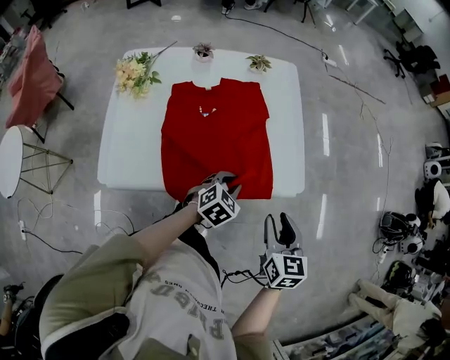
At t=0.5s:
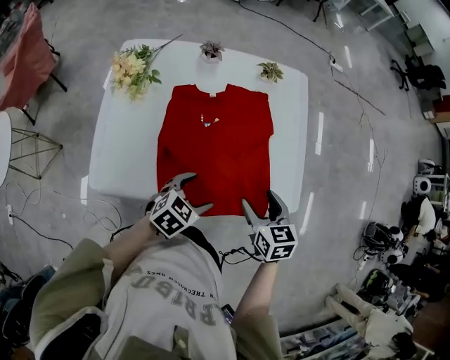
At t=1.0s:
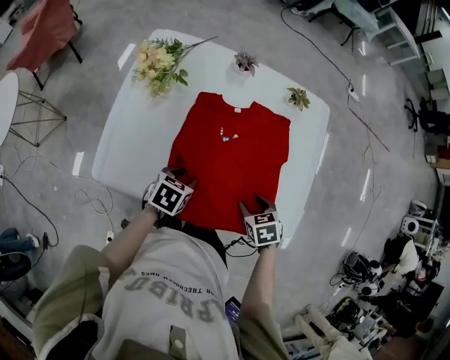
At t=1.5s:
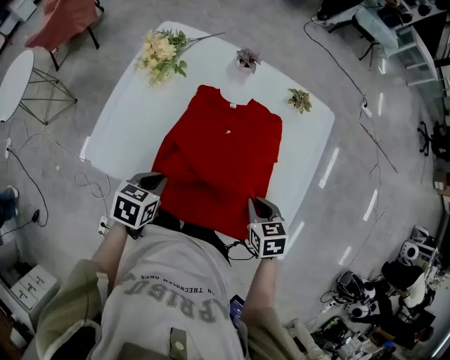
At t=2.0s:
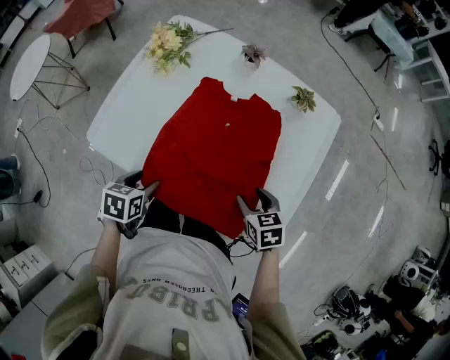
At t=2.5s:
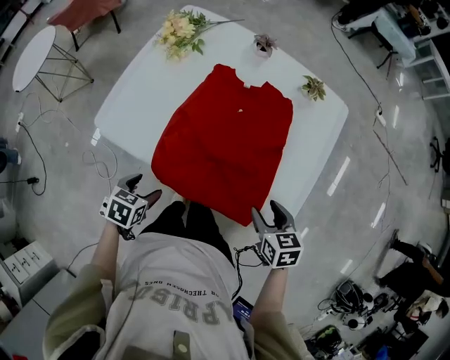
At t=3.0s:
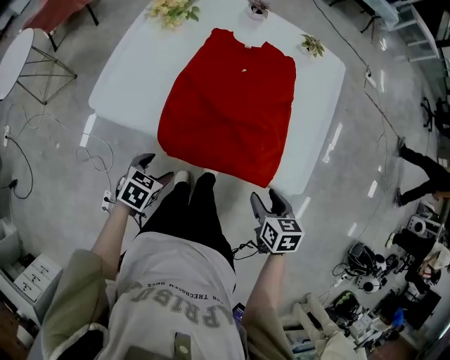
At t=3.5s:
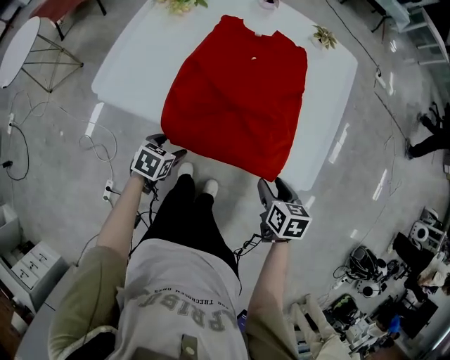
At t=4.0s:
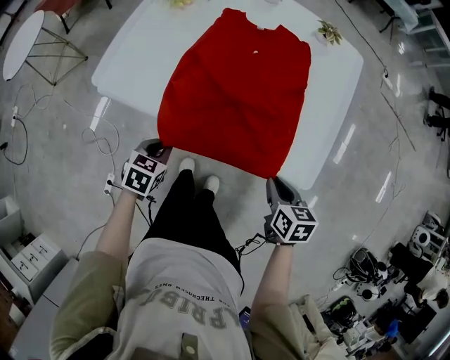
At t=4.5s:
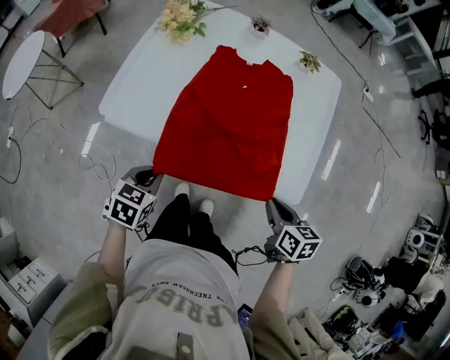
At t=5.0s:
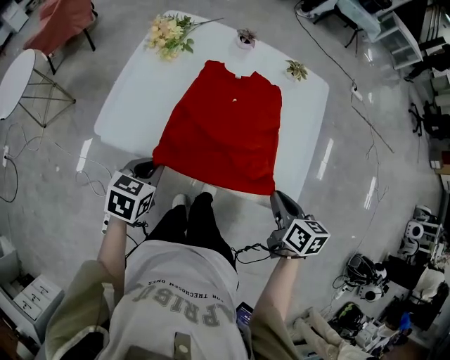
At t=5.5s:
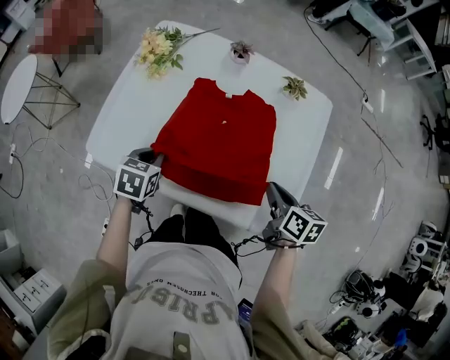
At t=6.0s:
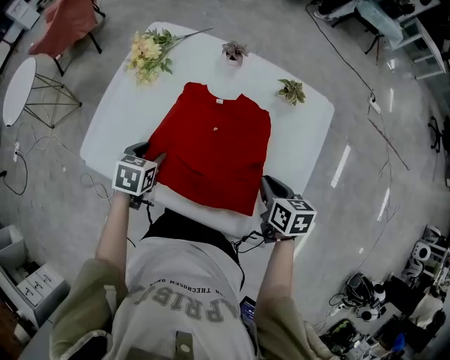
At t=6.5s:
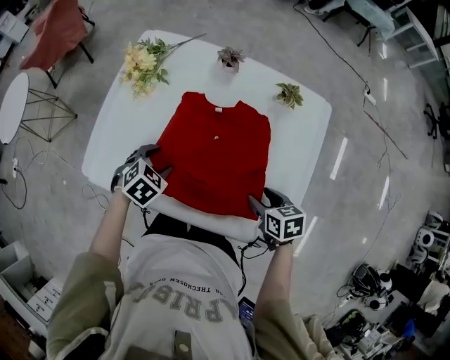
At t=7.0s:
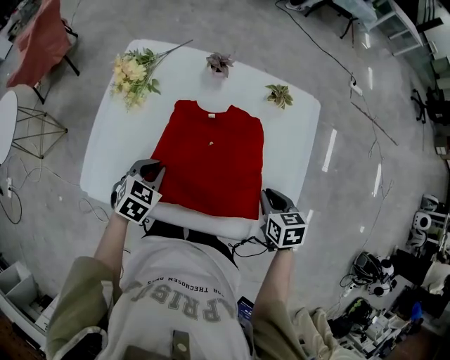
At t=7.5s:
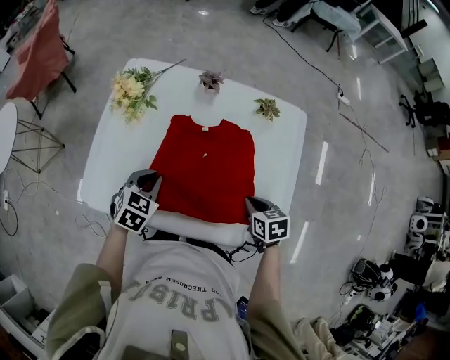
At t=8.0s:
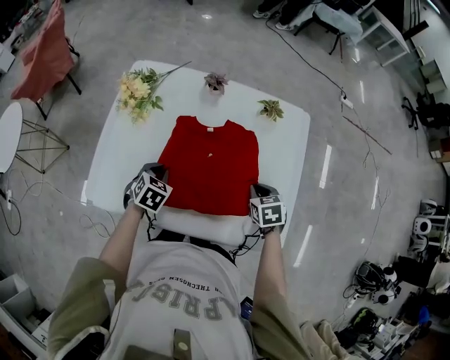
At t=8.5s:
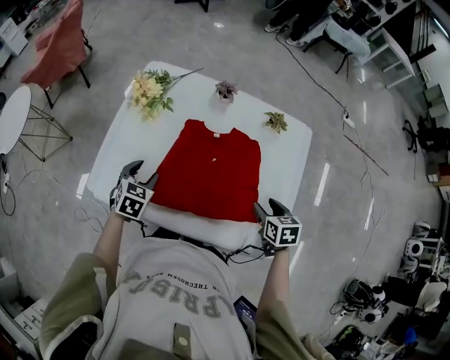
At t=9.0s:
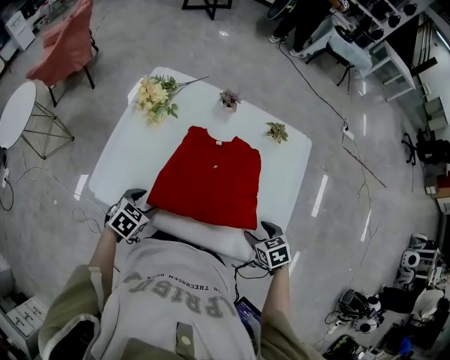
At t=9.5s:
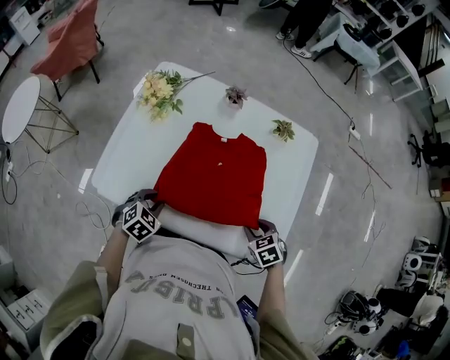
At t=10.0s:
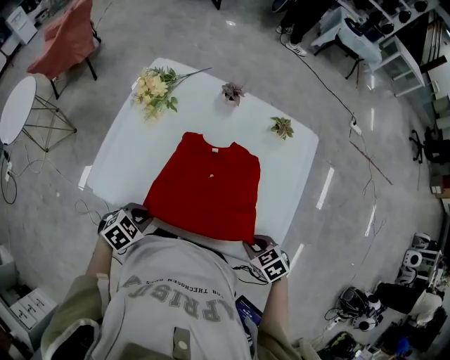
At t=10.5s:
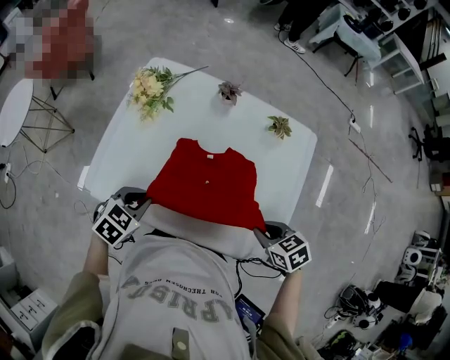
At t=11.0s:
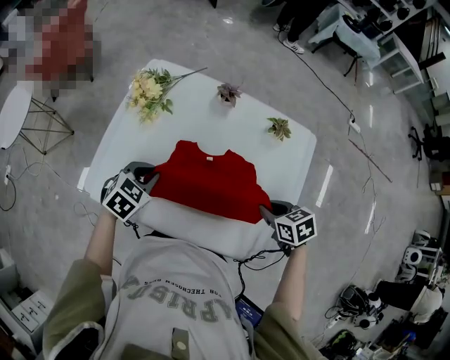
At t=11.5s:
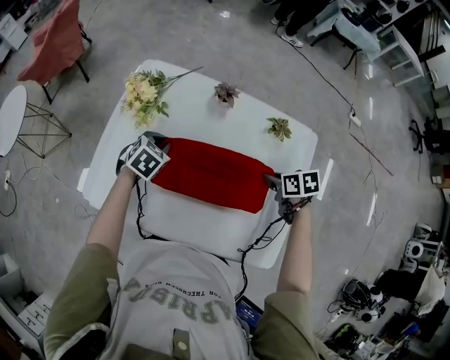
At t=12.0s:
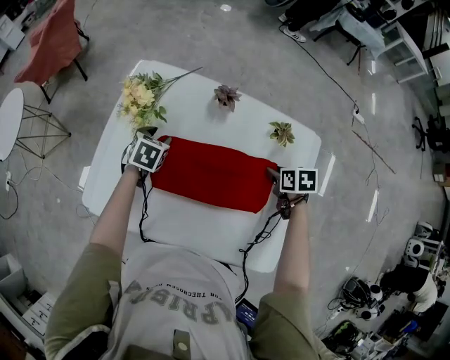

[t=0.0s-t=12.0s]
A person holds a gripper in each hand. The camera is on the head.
t=0.0s to t=2.0s: The right gripper moves some 25 cm, and swivels roughly 50 degrees. Meanwhile the left gripper moves about 20 cm, twists about 60 degrees counterclockwise, seen from behind, and opens up.
t=2.0s to t=4.0s: The left gripper heads backward and downward, covering some 15 cm, swivels approximately 20 degrees, and closes up, while the right gripper is displaced backward by approximately 15 cm, turns by about 20 degrees, and closes.
t=4.0s to t=6.0s: Both grippers move forward, some 25 cm. The left gripper opens up.
t=6.0s to t=8.0s: The right gripper moves some 5 cm, swivels approximately 20 degrees, and opens, then closes once more; the left gripper turns by about 30 degrees, and closes.
t=8.0s to t=10.0s: The right gripper moves approximately 15 cm, turns by about 30 degrees, and opens, then closes again. Meanwhile the left gripper moves roughly 15 cm, rotates some 20 degrees, and opens and closes again.
t=10.0s to t=12.0s: The left gripper moves approximately 5 cm upward and comes back, swivels some 30 degrees, and opens its fingers, while the right gripper ends up roughly 30 cm from where it was, and turns by approximately 40 degrees.

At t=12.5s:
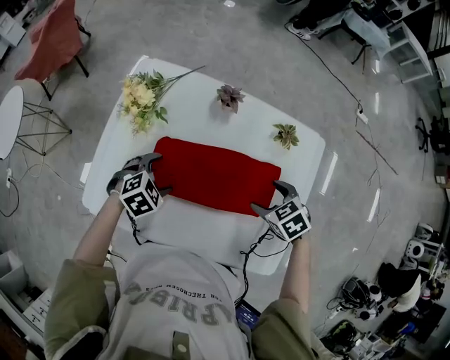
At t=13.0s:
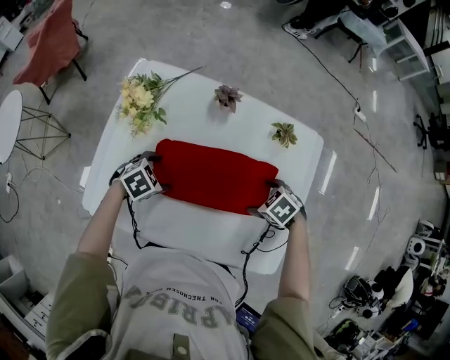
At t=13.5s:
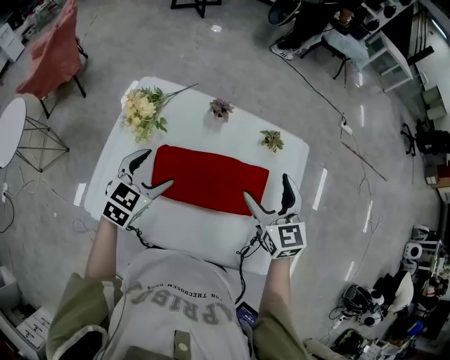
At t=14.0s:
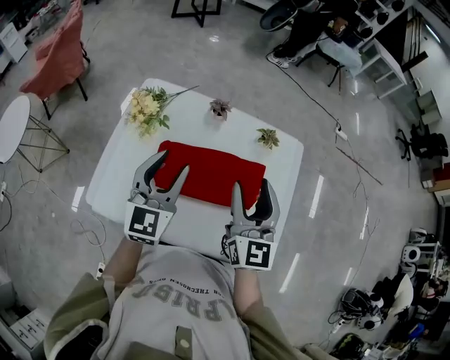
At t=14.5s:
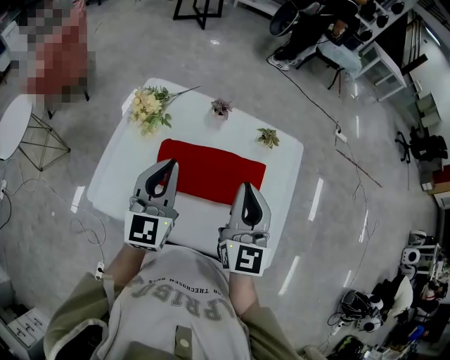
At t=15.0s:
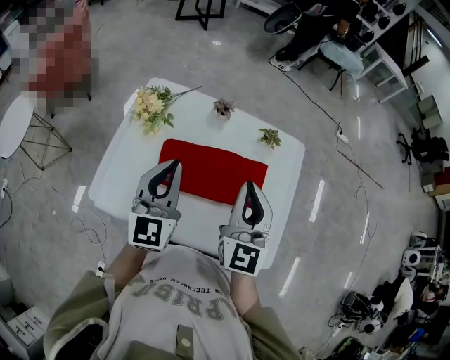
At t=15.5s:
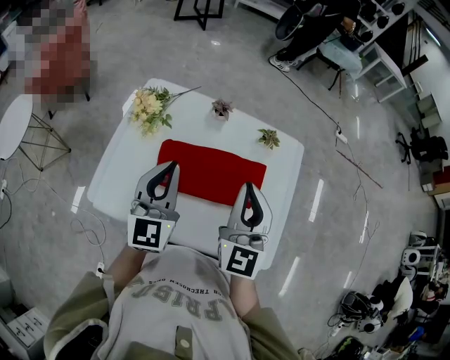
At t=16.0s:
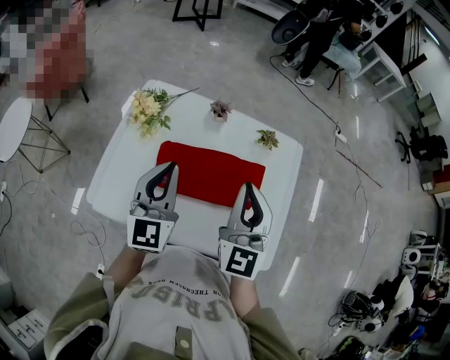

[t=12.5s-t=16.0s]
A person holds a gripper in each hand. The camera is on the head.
t=12.5s to t=14.5s: Both grippers travel together upward, approximately 25 cm. The right gripper tips its fingers upward by roughly 60 degrees, and closes up; the left gripper angles its fingers upward, by roughly 60 degrees, and closes.
t=14.5s to t=16.0s: The grippers move only a little.

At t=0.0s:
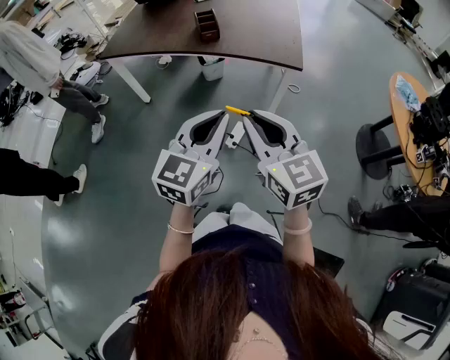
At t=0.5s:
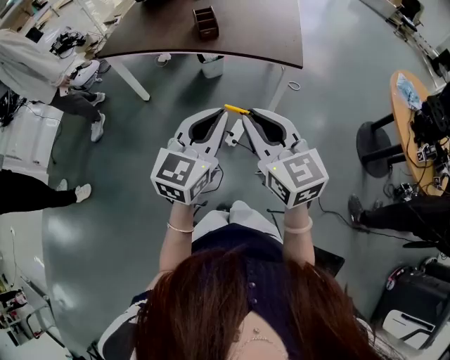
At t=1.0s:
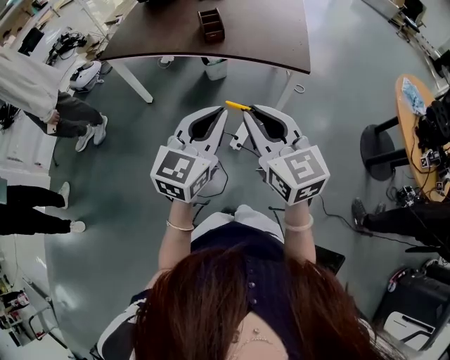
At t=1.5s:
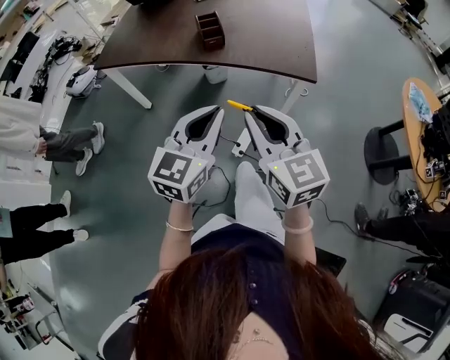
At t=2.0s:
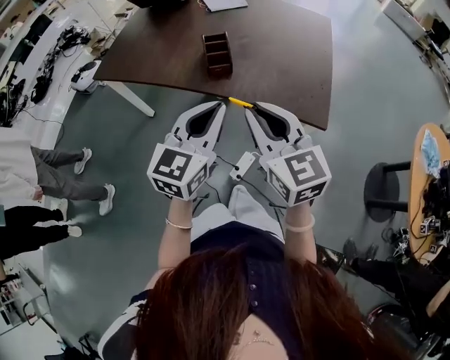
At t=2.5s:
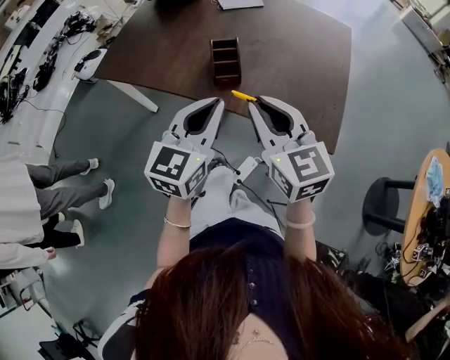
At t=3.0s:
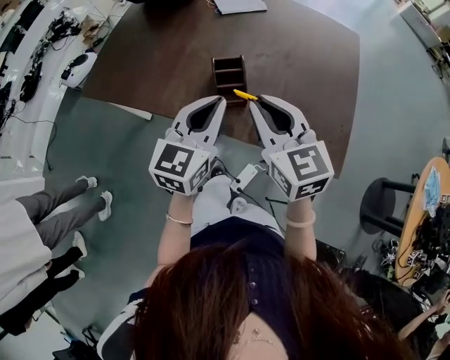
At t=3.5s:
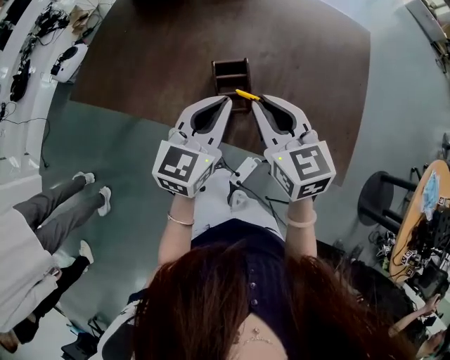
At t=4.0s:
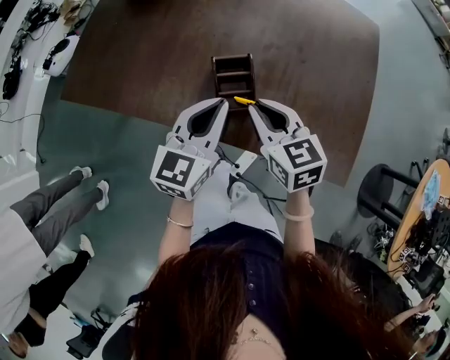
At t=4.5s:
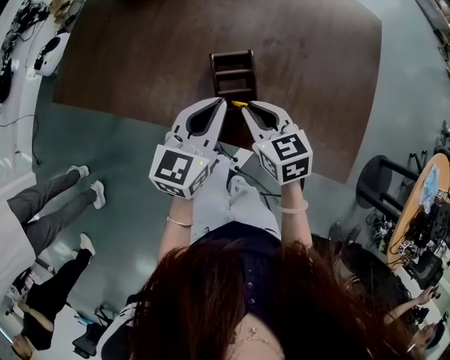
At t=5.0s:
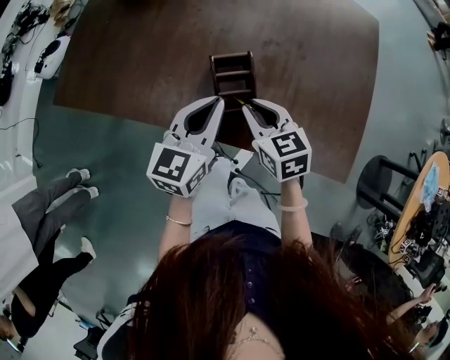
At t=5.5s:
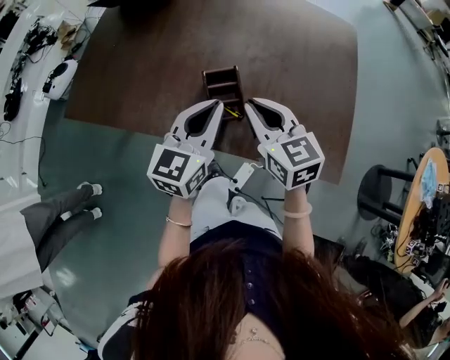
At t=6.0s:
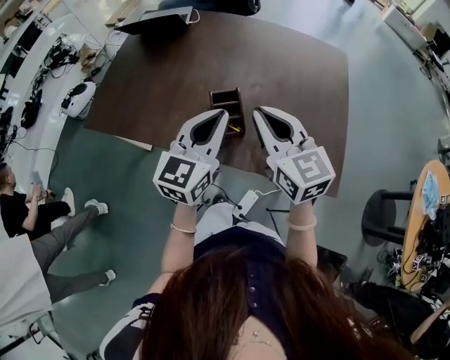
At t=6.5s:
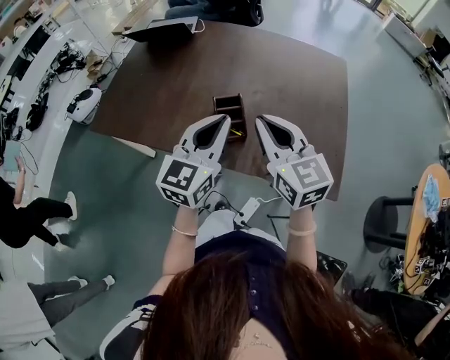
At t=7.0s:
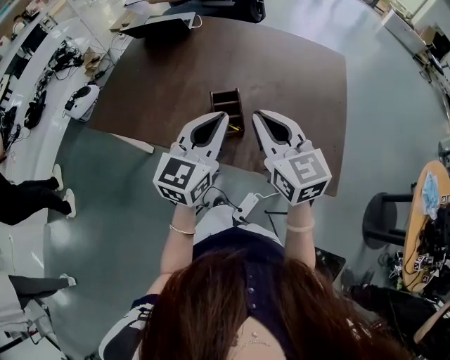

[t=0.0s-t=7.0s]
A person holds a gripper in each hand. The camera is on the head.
t=0.0s to t=2.0s: Both grippers move forward, roughly 35 cm.
t=2.0s to t=3.5s: Both grippers move forward, some 30 cm.
t=3.5s to t=5.0s: The left gripper moves downward, some 5 cm. Meanwhile the right gripper heads downward, covering some 15 cm.
t=5.0s to t=7.0s: The right gripper travels upward by approximately 20 cm, and changes its angle by about 30 degrees; the left gripper is displaced upward and backward by roughly 15 cm.

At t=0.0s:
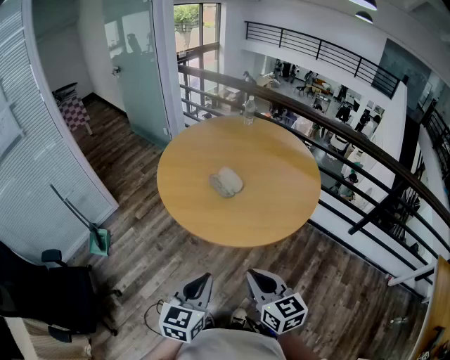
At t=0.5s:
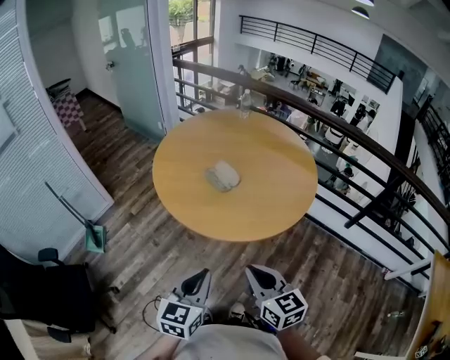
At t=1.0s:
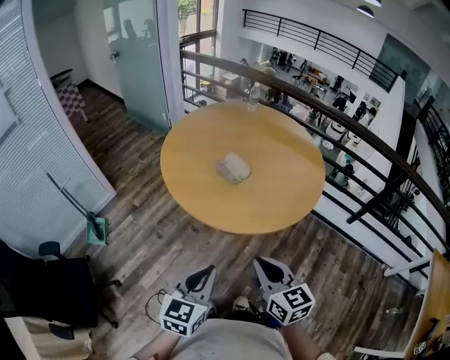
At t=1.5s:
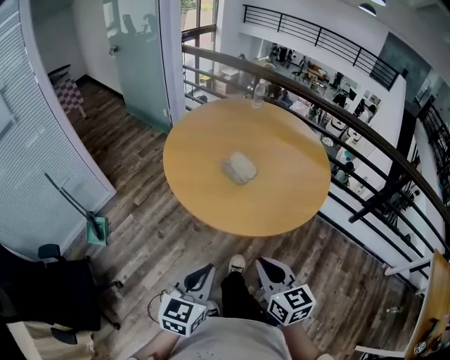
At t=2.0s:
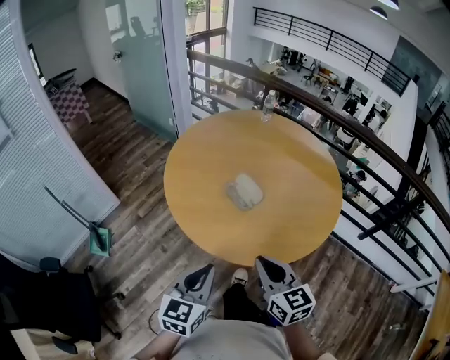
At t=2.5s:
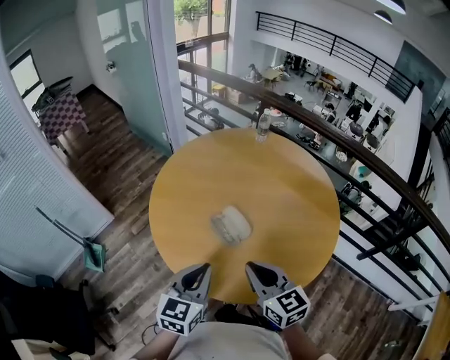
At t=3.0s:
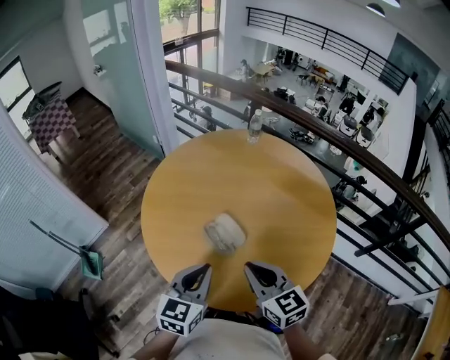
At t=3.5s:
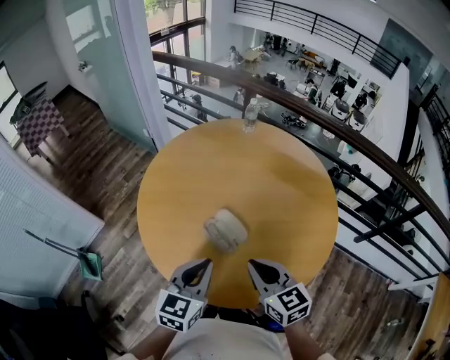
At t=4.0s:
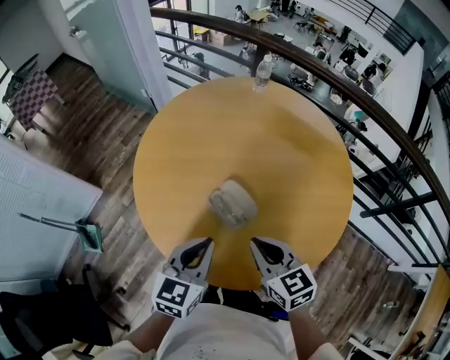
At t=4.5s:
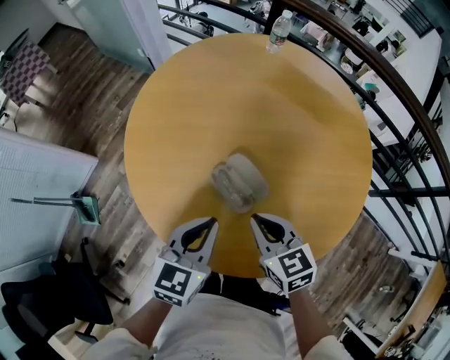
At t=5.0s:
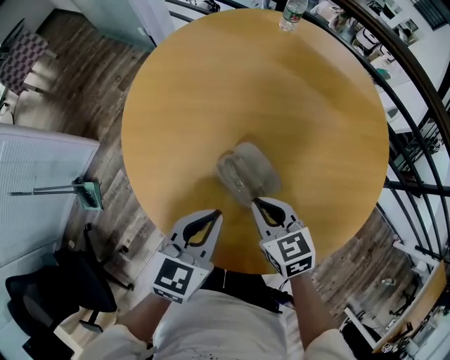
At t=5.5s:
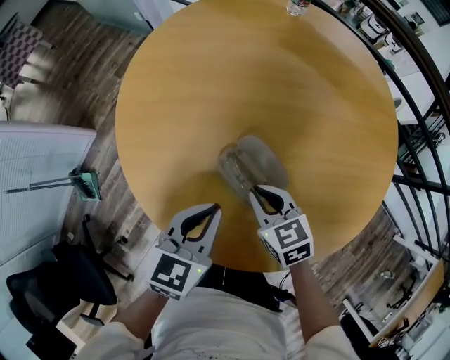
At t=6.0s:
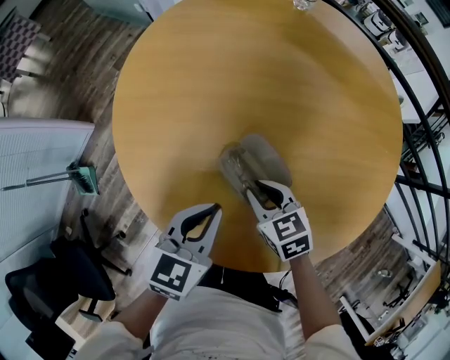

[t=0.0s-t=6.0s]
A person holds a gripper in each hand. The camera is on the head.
t=0.0s to t=2.0s: The left gripper is displaced forward and to the left by roughly 15 cm. The right gripper goes approximately 15 cm forward.
t=2.0s to t=4.0s: The two grippers go roughly 25 cm forward.
t=4.0s to t=6.0s: The left gripper heads downward and forward, covering some 15 cm; the right gripper heads downward and forward, covering approximately 25 cm, and changes its angle by some 20 degrees.
